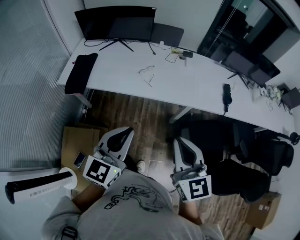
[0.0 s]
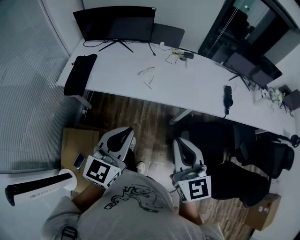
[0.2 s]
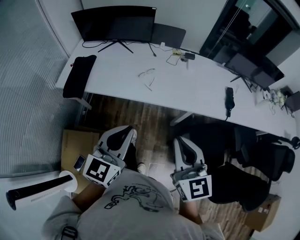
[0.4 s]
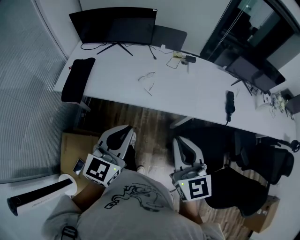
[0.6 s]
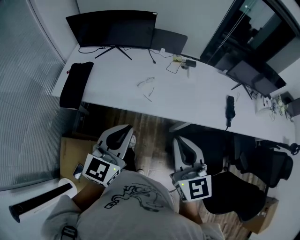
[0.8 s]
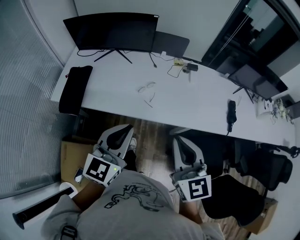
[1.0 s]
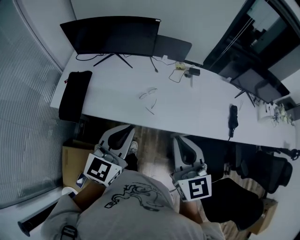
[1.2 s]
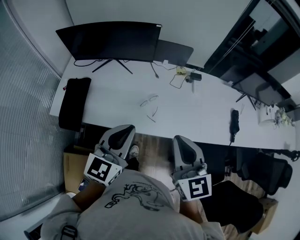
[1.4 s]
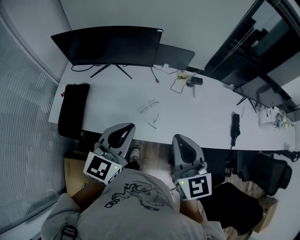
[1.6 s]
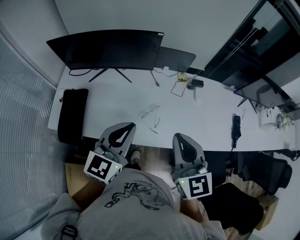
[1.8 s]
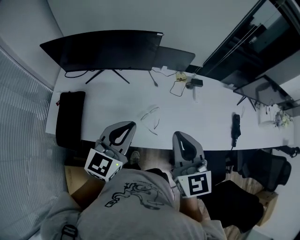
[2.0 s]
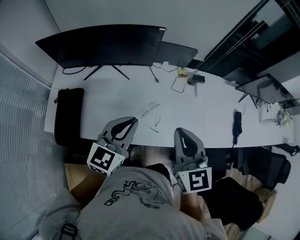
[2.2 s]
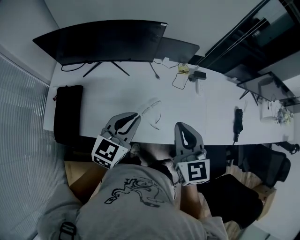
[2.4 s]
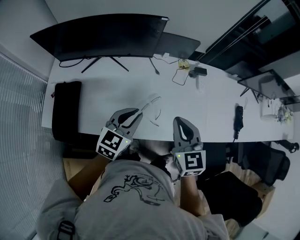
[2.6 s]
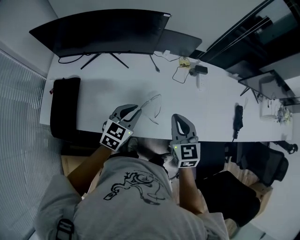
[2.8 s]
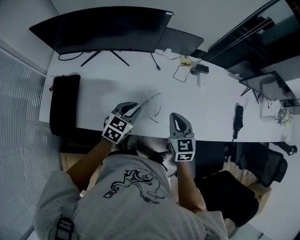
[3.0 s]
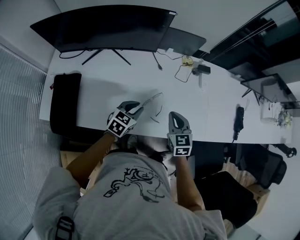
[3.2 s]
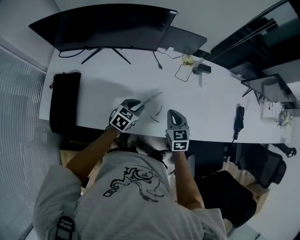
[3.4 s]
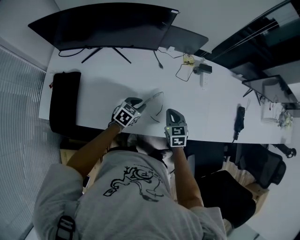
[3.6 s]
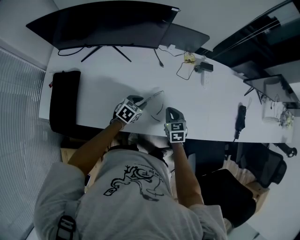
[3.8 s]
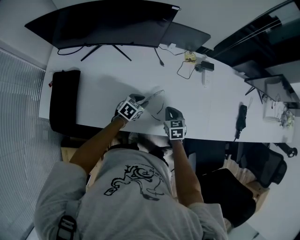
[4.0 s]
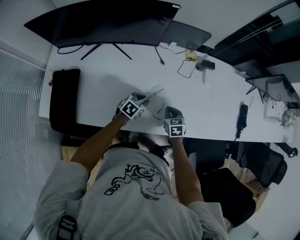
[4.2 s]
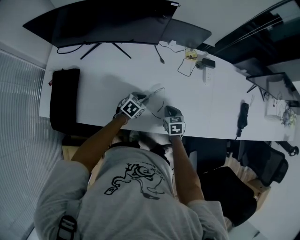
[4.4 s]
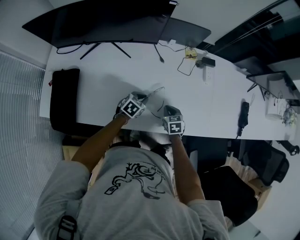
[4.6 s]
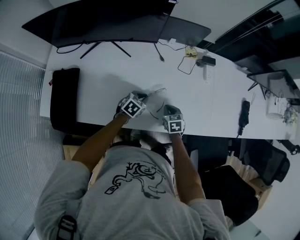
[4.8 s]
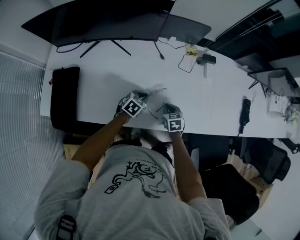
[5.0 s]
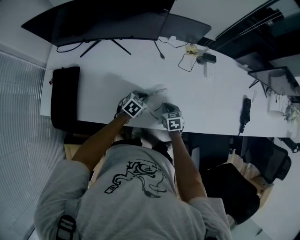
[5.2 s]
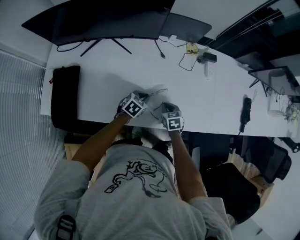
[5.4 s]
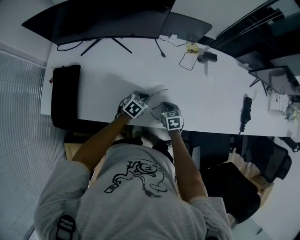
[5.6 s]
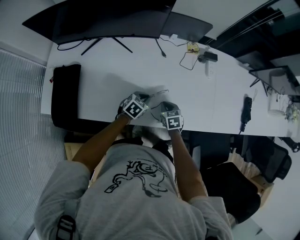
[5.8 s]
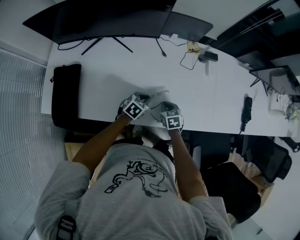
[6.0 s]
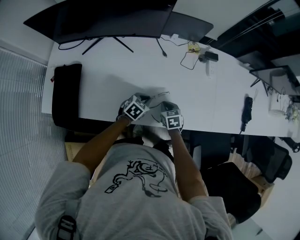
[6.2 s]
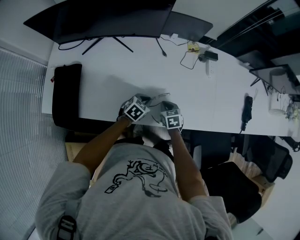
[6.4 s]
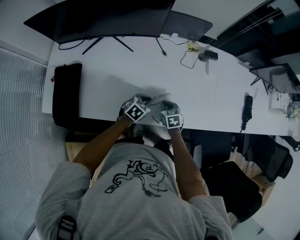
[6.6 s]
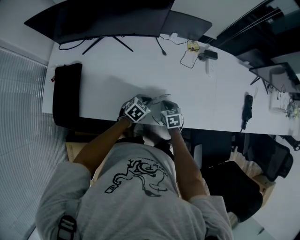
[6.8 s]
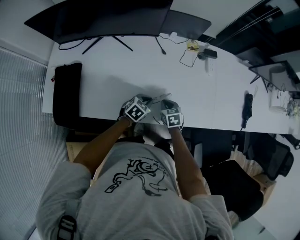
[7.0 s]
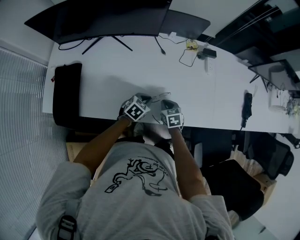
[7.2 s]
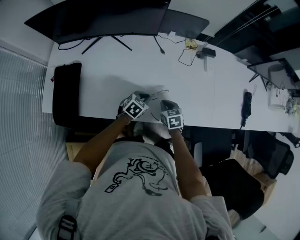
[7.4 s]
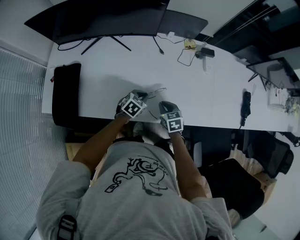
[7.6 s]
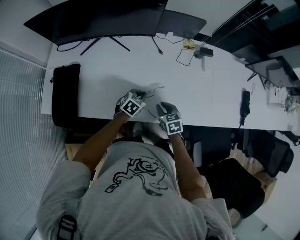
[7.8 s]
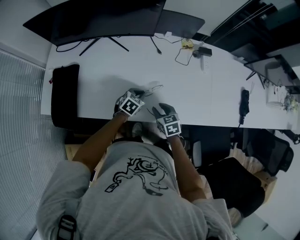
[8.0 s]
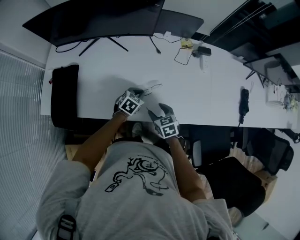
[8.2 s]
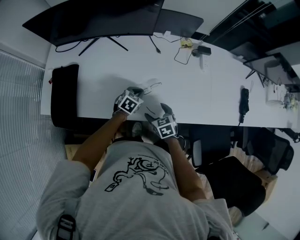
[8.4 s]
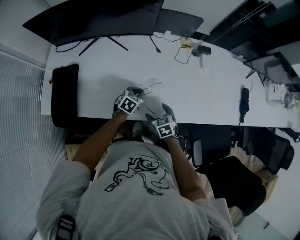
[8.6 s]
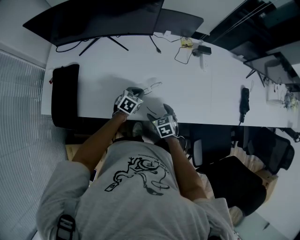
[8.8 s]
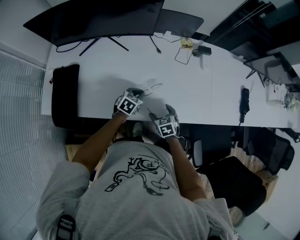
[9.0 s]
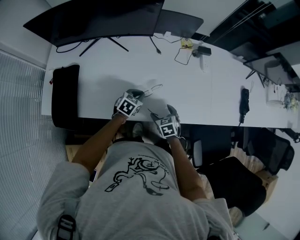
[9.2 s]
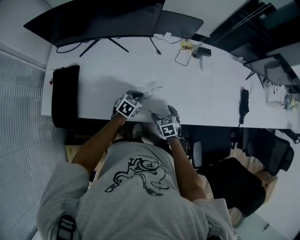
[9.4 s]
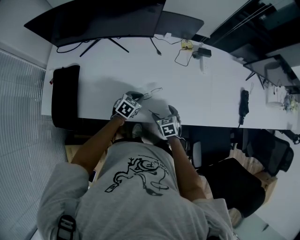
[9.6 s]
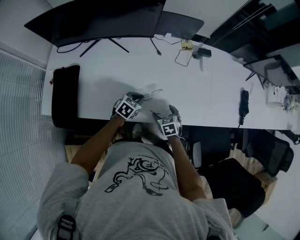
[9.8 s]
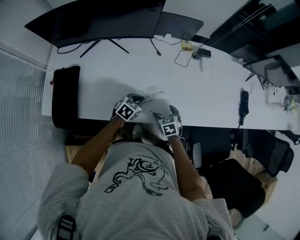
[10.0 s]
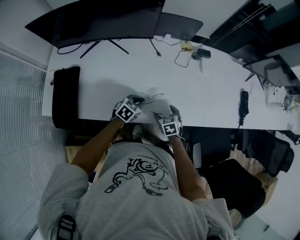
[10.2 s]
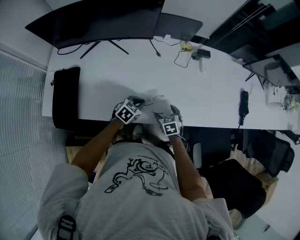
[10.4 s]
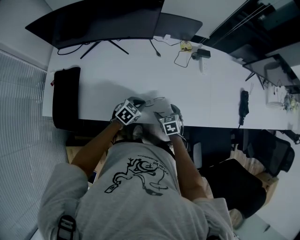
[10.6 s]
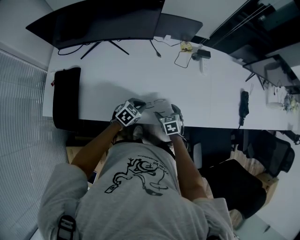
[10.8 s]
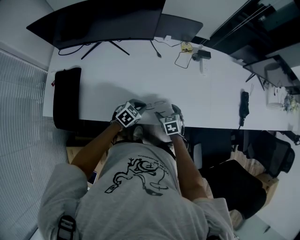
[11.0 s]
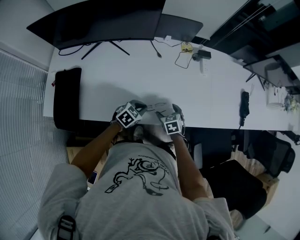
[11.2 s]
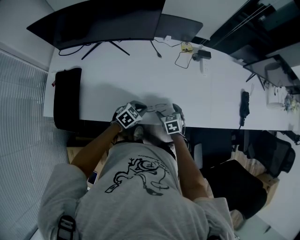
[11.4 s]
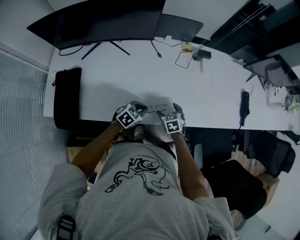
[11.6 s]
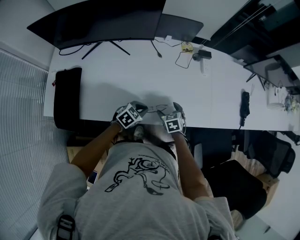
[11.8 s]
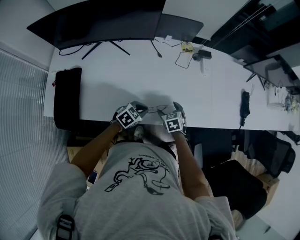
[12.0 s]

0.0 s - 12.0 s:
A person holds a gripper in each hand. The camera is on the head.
0.0 s - 1.6 s: The two grippers go about 40 cm forward.
1.6 s - 3.0 s: Both grippers move downward and forward, roughly 30 cm. The left gripper rotates some 30 degrees.
3.0 s - 4.4 s: Both grippers move downward, approximately 20 cm. The left gripper swivels about 20 degrees. Meanwhile the right gripper changes its angle by some 20 degrees.
4.4 s - 6.0 s: There are only small adjustments of the grippers.
6.0 s - 7.6 s: The right gripper moves roughly 5 cm.
7.6 s - 9.0 s: The right gripper ends up about 5 cm from where it was, and opens its fingers.
9.0 s - 10.4 s: There are only small adjustments of the grippers.
10.4 s - 12.0 s: The grippers stay close to where they were, moving slightly.

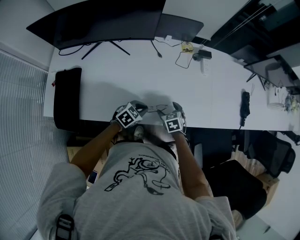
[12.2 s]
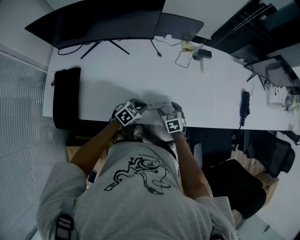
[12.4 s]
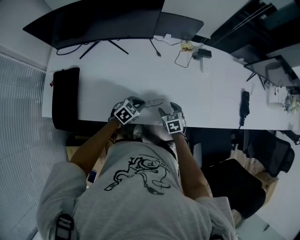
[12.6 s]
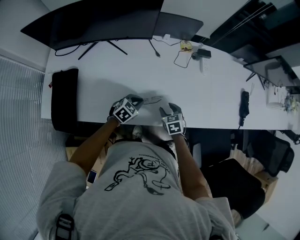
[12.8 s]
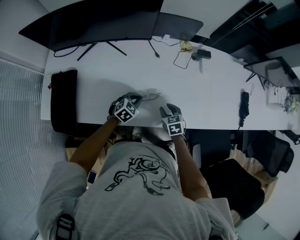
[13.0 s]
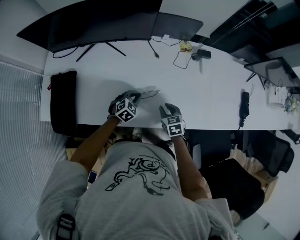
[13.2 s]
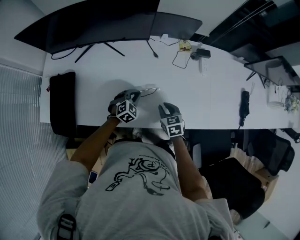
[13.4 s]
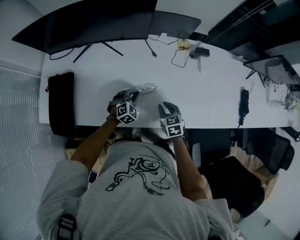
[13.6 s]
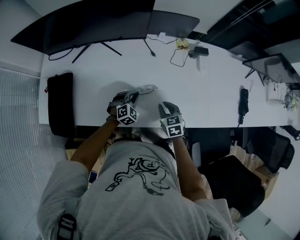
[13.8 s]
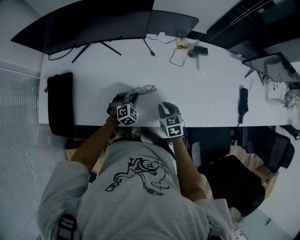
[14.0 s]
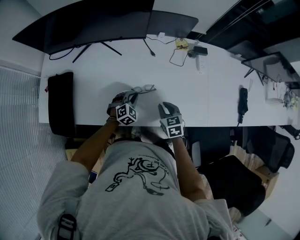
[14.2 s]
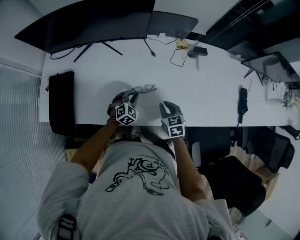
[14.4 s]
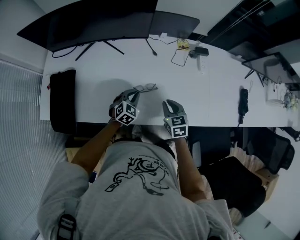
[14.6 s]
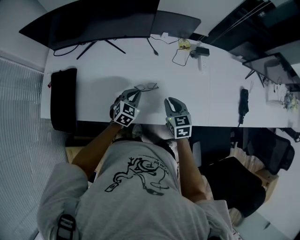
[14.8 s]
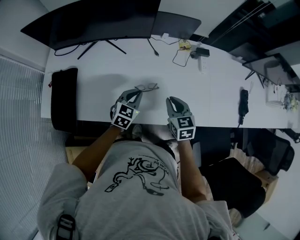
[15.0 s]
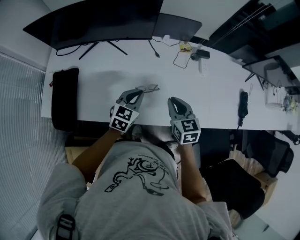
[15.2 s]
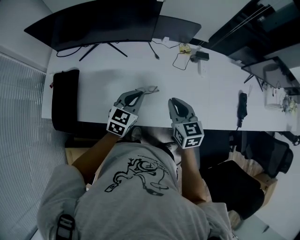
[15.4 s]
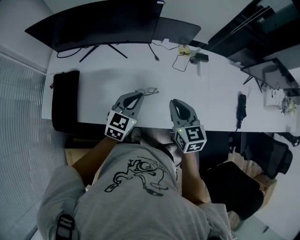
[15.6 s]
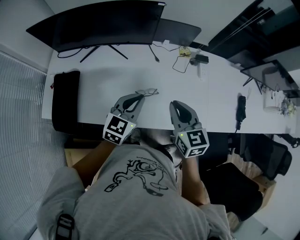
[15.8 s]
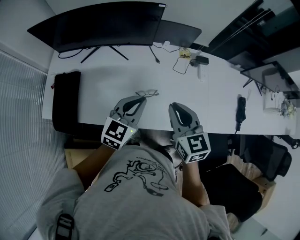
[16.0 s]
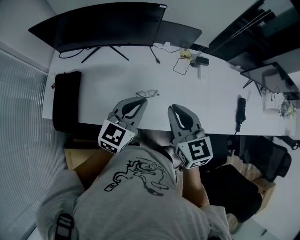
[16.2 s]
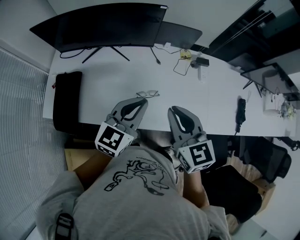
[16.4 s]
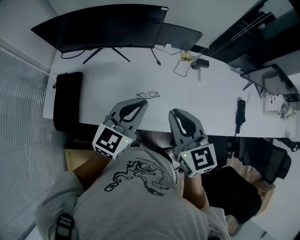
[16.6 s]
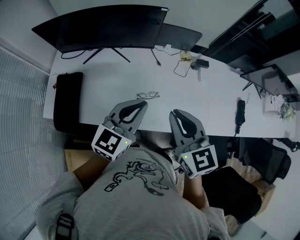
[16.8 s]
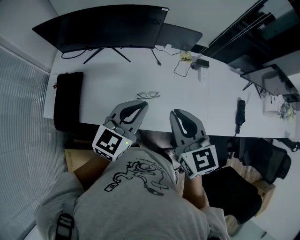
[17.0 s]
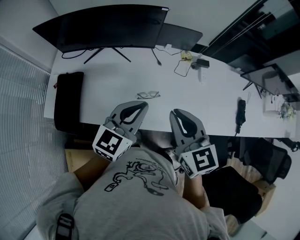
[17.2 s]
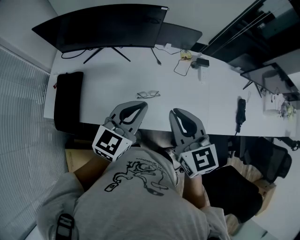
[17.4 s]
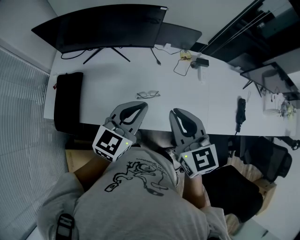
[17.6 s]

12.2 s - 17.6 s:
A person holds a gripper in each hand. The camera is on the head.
12.2 s - 13.6 s: The right gripper moves approximately 5 cm, and closes, while the left gripper is displaced forward by roughly 10 cm, and swivels approximately 30 degrees.
13.6 s - 15.0 s: Both grippers travel together upward, roughly 10 cm. The left gripper rotates approximately 30 degrees.
15.0 s - 16.2 s: Both grippers move upward, roughly 20 cm.
16.2 s - 17.6 s: The grippers make only small movements.

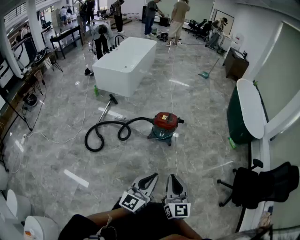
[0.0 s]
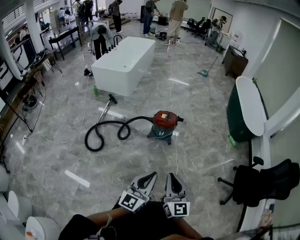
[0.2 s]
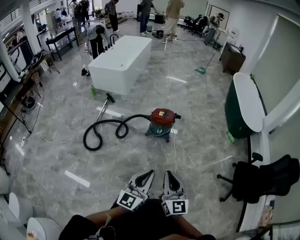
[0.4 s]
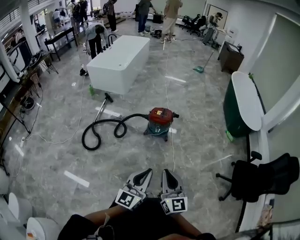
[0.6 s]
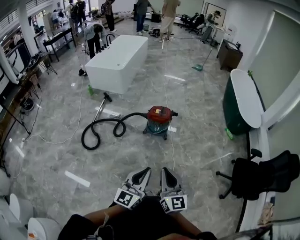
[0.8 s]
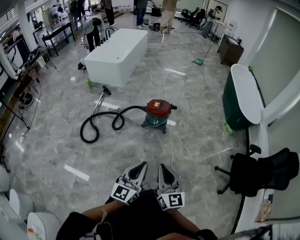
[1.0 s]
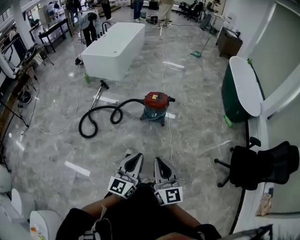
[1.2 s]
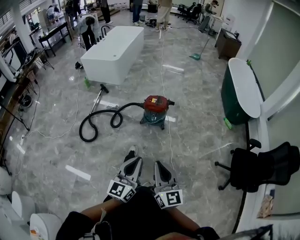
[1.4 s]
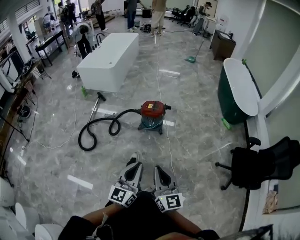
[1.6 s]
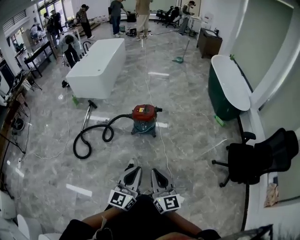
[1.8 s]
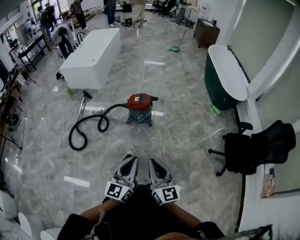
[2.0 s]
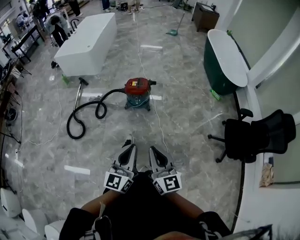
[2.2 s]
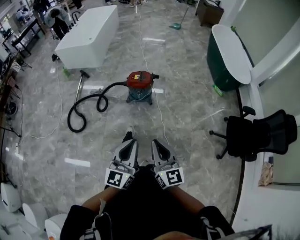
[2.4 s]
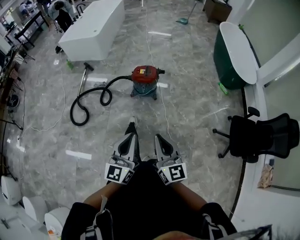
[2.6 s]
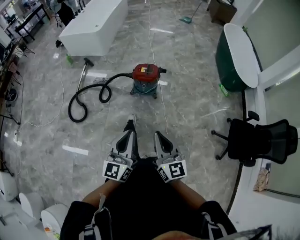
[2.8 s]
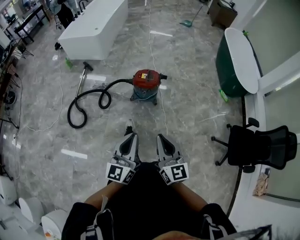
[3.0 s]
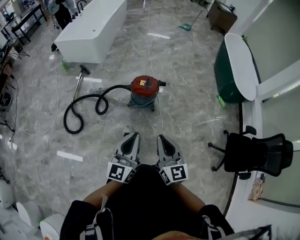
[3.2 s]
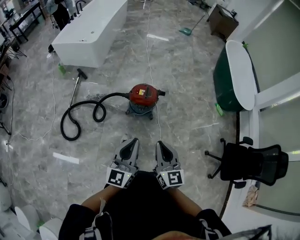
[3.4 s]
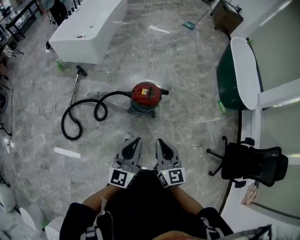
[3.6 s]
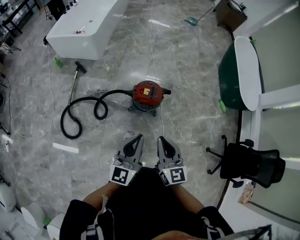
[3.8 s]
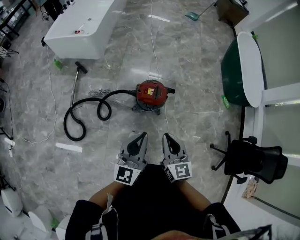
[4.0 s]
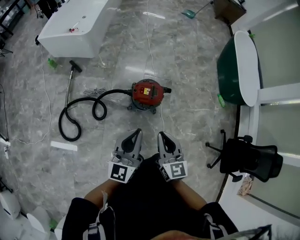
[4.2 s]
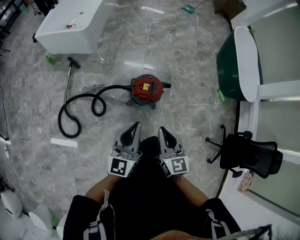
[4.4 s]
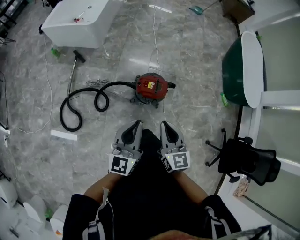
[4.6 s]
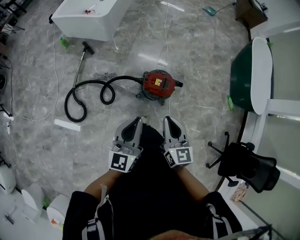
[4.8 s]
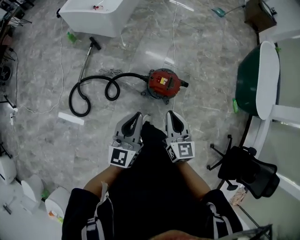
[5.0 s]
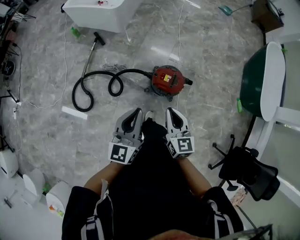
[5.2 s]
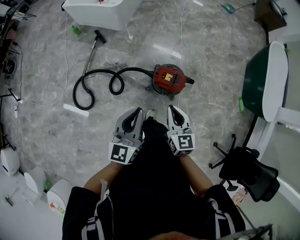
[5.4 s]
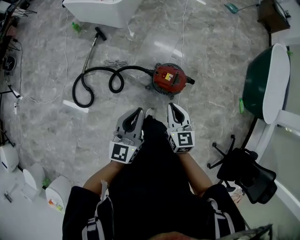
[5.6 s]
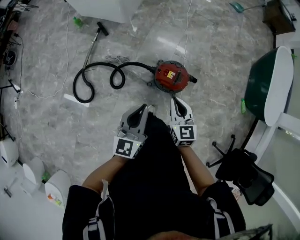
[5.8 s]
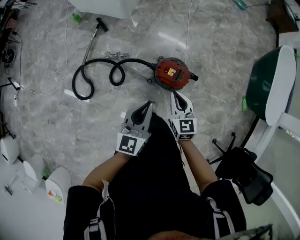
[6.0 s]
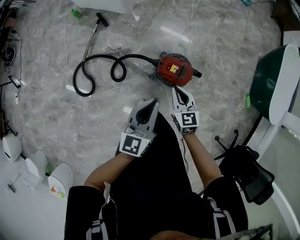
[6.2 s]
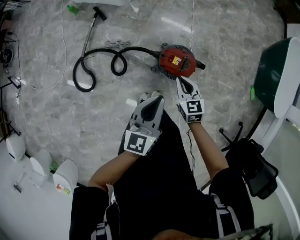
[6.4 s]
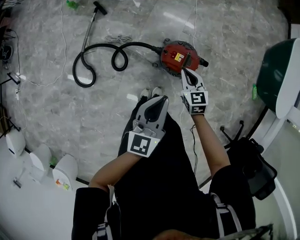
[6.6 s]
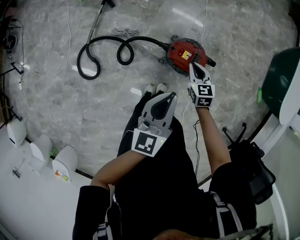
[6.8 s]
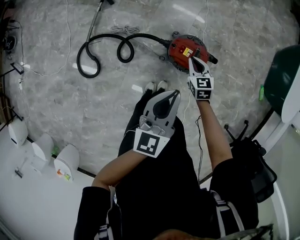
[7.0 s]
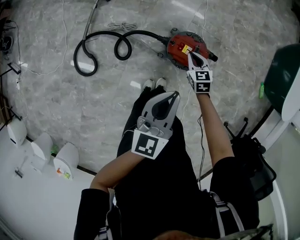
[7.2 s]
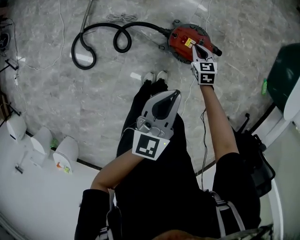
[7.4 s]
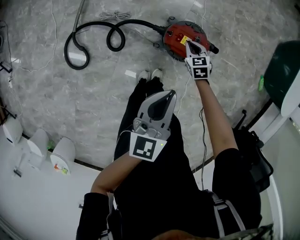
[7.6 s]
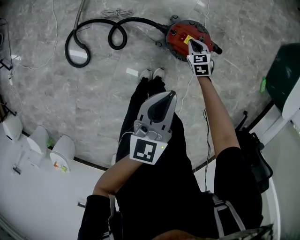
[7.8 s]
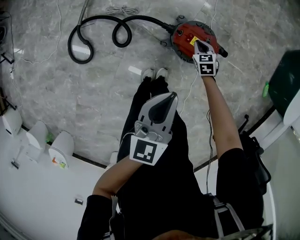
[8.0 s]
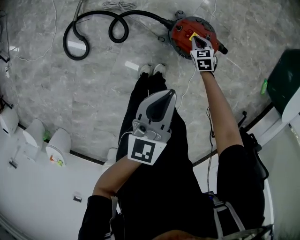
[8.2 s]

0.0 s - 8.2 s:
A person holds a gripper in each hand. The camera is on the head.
0.0 s - 1.6 s: The right gripper ends up approximately 5 cm from where it was.
1.6 s - 3.2 s: Both grippers travel together forward, roughly 20 cm.
3.2 s - 5.0 s: The left gripper travels forward and to the left by some 35 cm. The right gripper goes about 35 cm forward.
5.0 s - 6.6 s: The left gripper travels downward, to the right and forward by roughly 15 cm. Meanwhile the right gripper heads downward and forward, covering about 25 cm, and swivels roughly 20 degrees.
6.6 s - 8.2 s: The right gripper travels downward by roughly 25 cm, and swivels approximately 20 degrees. Meanwhile the left gripper travels downward by some 10 cm.
